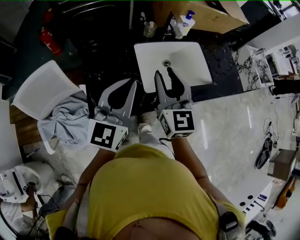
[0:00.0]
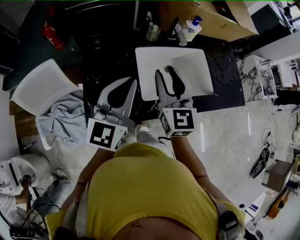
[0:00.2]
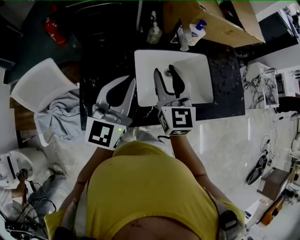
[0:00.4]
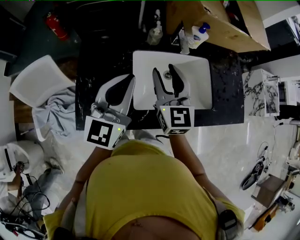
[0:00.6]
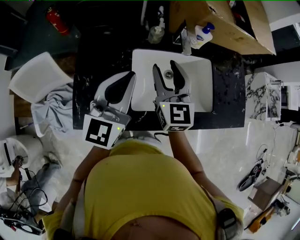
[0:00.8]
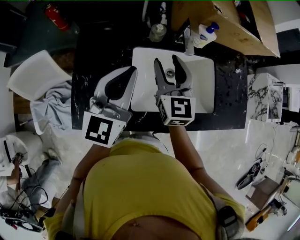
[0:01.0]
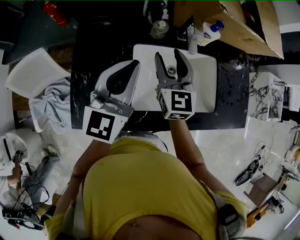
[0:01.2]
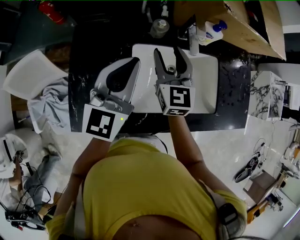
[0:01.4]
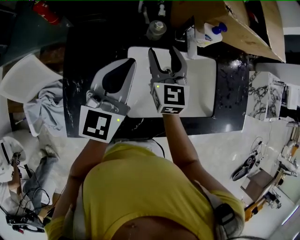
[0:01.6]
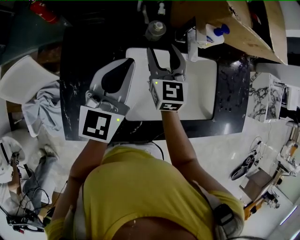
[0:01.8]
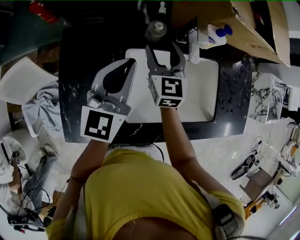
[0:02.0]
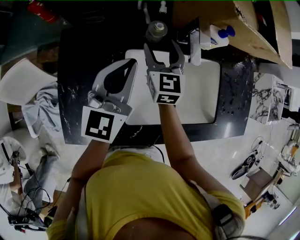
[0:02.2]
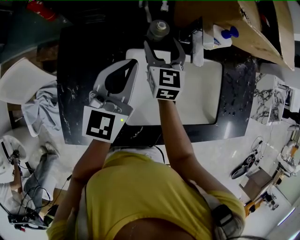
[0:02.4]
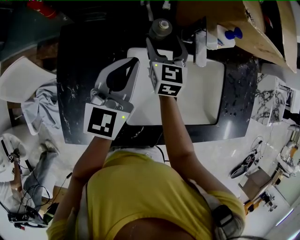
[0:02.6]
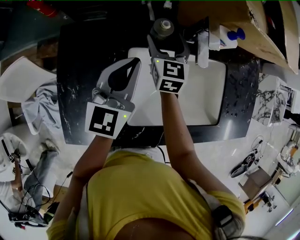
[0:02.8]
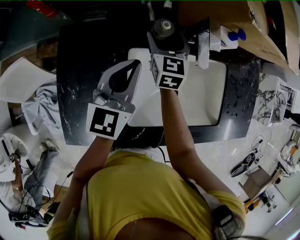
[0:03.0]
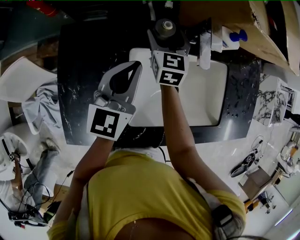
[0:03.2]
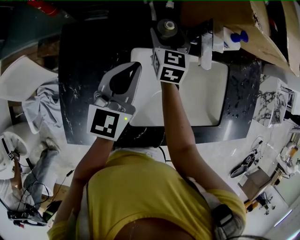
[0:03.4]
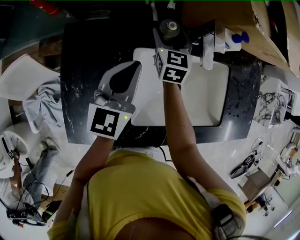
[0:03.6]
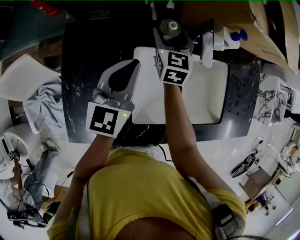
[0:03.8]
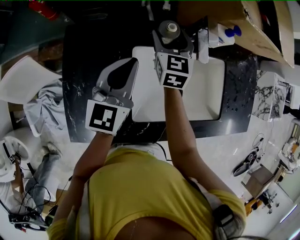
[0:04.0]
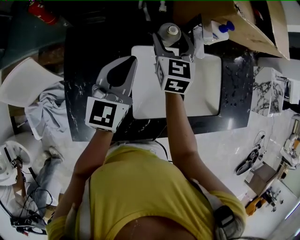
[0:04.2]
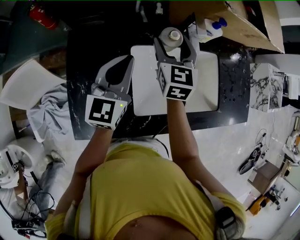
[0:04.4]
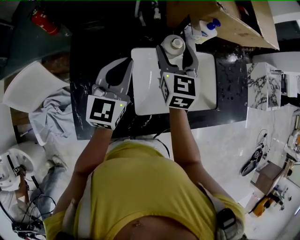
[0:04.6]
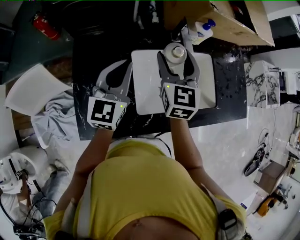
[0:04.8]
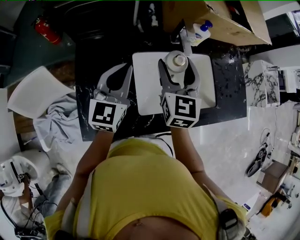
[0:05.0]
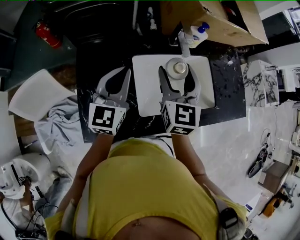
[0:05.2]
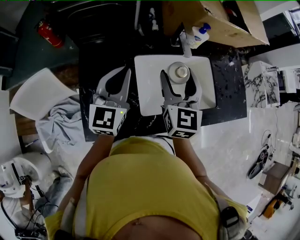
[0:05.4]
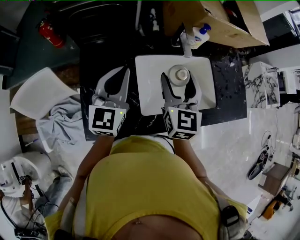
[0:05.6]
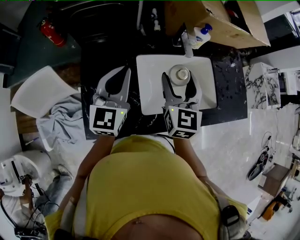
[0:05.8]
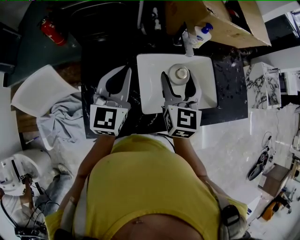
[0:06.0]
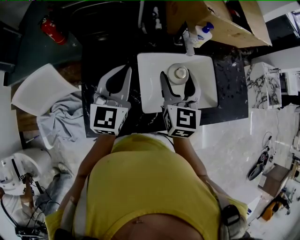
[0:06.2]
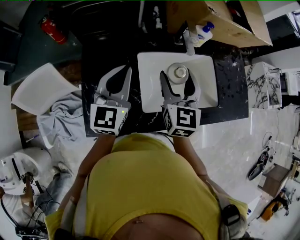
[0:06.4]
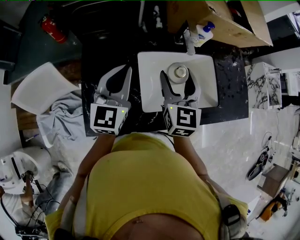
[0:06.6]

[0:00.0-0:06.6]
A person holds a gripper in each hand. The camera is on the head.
0:00.0 to 0:01.6: The left gripper heads forward, covering some 20 cm. The right gripper heads forward and downward, covering some 30 cm.
0:01.6 to 0:03.2: The left gripper goes approximately 10 cm downward; the right gripper is displaced forward and downward by about 15 cm, and opens.
0:03.2 to 0:05.0: The left gripper goes about 10 cm upward and backward, while the right gripper travels backward and upward by about 25 cm.
0:05.0 to 0:06.6: The grippers move only a little.

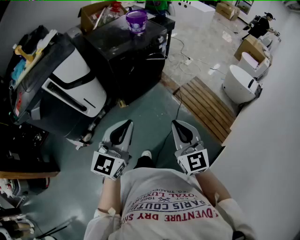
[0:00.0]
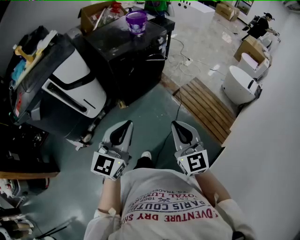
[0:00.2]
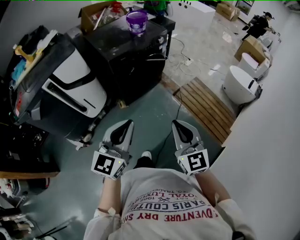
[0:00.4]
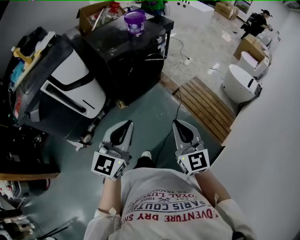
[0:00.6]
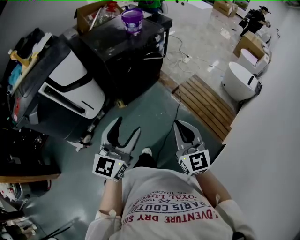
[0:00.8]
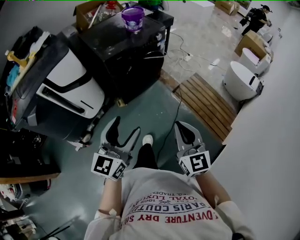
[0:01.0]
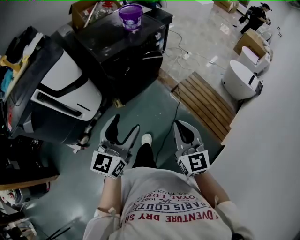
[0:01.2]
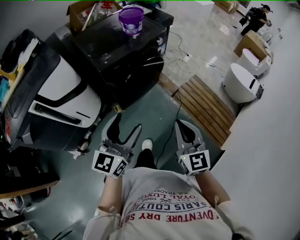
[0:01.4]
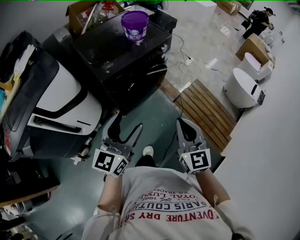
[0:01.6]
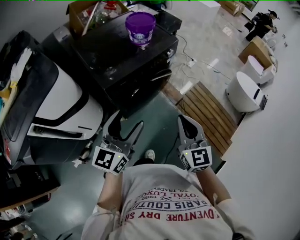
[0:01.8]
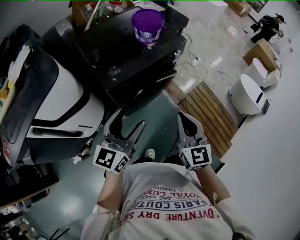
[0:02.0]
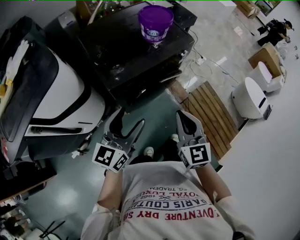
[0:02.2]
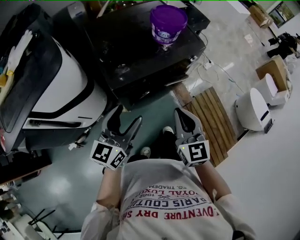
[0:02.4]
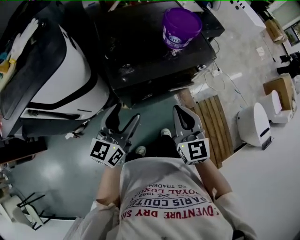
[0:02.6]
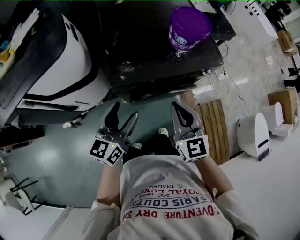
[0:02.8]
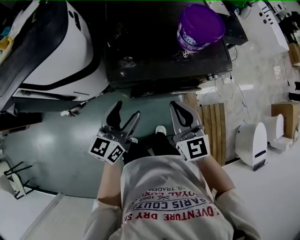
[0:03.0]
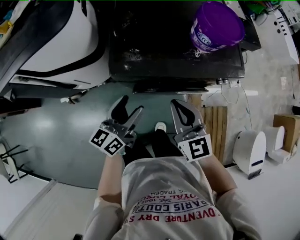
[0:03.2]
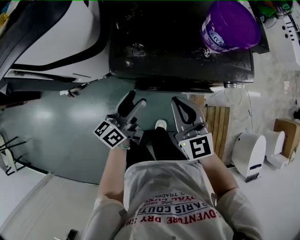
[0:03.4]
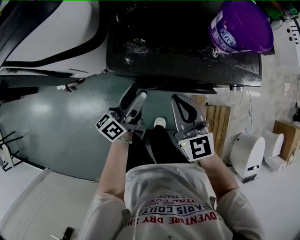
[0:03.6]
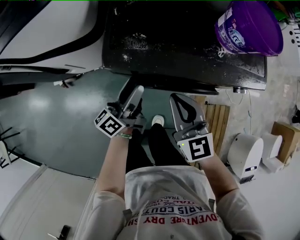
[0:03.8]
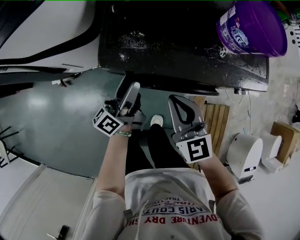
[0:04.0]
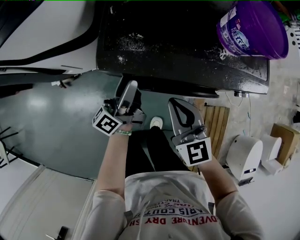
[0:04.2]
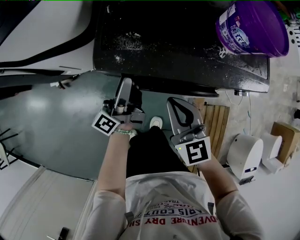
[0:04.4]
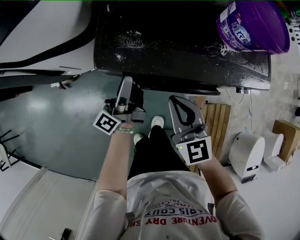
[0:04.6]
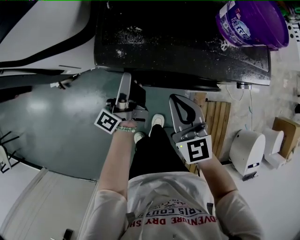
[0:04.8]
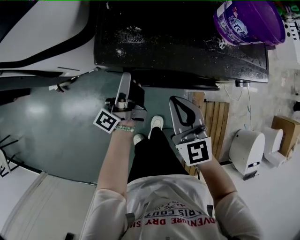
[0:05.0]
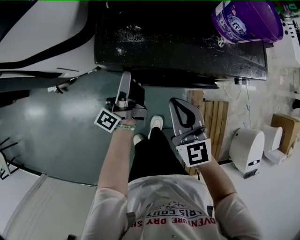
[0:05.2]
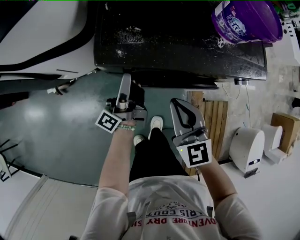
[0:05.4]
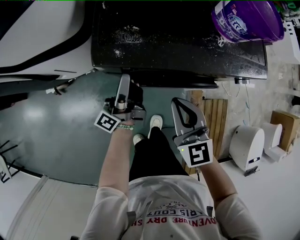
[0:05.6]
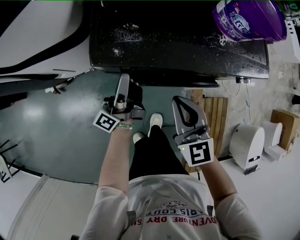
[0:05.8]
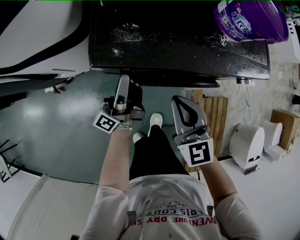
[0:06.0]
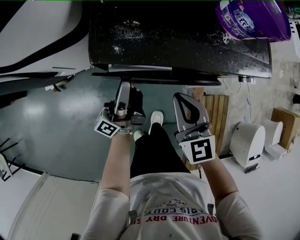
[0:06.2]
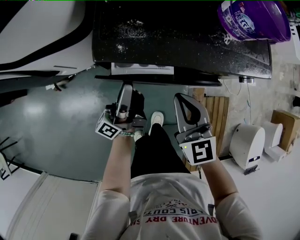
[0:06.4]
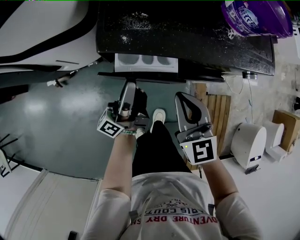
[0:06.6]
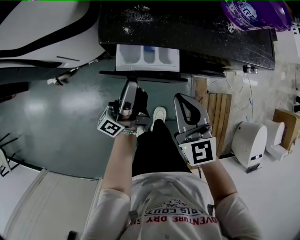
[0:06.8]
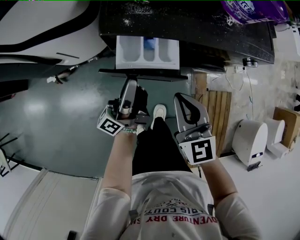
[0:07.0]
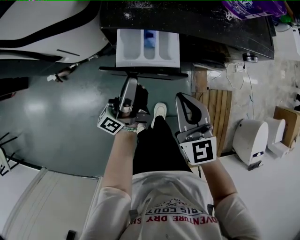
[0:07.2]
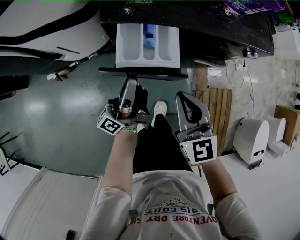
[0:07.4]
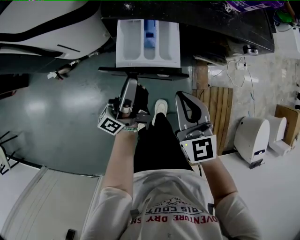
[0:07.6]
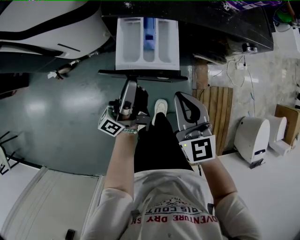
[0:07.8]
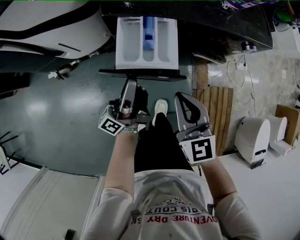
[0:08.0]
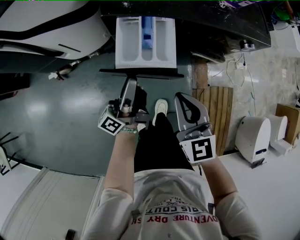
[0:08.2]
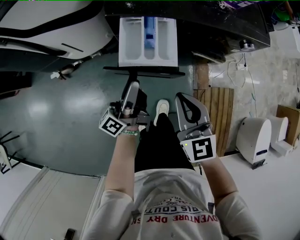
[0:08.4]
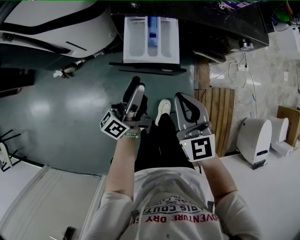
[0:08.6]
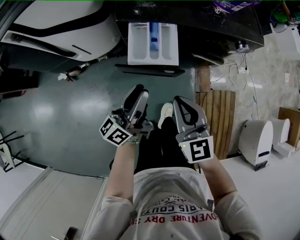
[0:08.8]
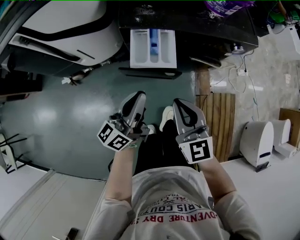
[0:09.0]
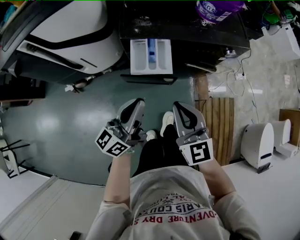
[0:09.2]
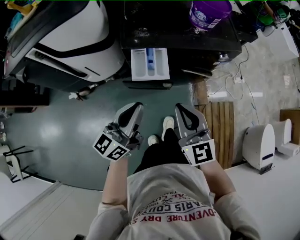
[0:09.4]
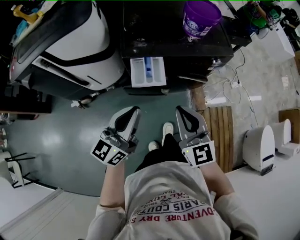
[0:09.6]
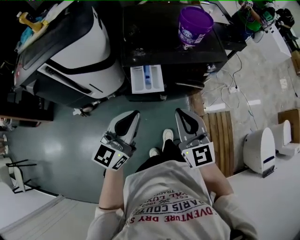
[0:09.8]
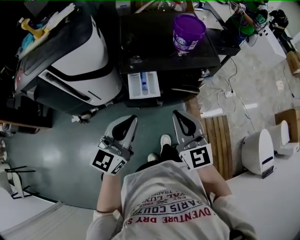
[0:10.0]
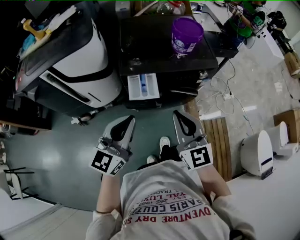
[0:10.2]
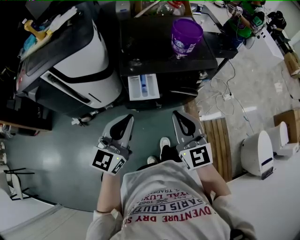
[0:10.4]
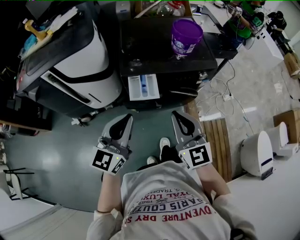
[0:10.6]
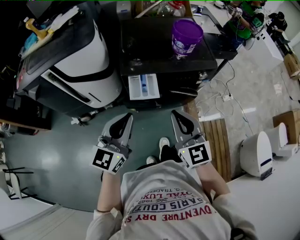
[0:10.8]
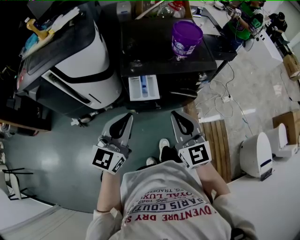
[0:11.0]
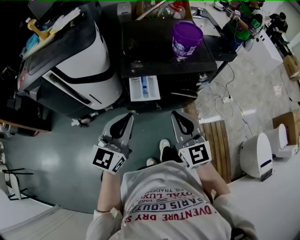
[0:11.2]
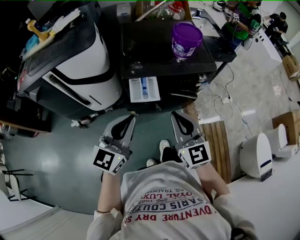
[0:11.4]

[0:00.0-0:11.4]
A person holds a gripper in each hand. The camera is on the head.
0:00.0 to 0:01.4: Both grippers travel together forward, approximately 15 cm. The left gripper opens up.
0:01.4 to 0:02.8: The right gripper shifts by about 40 cm, and changes its angle by approximately 30 degrees, while the left gripper moves some 30 cm, and rotates some 30 degrees.
0:02.8 to 0:04.2: Both grippers move downward and forward, approximately 20 cm. The right gripper rotates roughly 20 degrees; the left gripper swivels about 50 degrees.
0:04.2 to 0:05.6: The left gripper closes up.
0:05.6 to 0:07.2: Both grippers move backward, roughly 10 cm.
0:07.2 to 0:08.6: The two grippers go roughly 5 cm backward. The left gripper opens its fingers.
0:08.6 to 0:10.0: Both grippers move upward, some 25 cm. The left gripper rotates around the line of its fingers by about 60 degrees, clockwise from behind, and closes its fingers.
0:10.0 to 0:11.4: The grippers make only small movements.

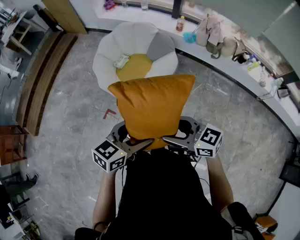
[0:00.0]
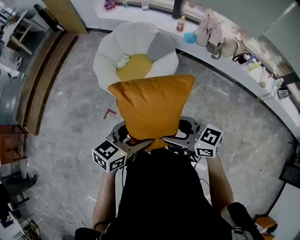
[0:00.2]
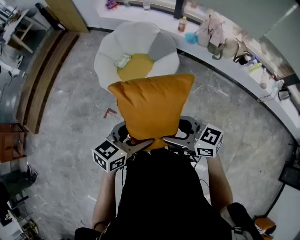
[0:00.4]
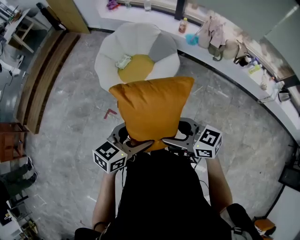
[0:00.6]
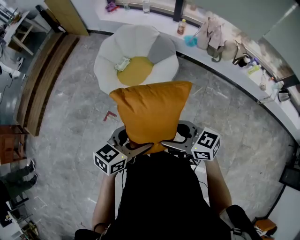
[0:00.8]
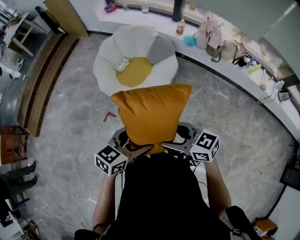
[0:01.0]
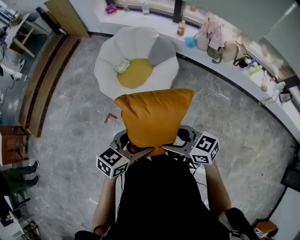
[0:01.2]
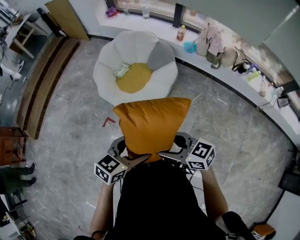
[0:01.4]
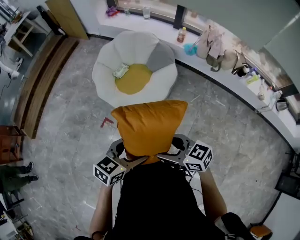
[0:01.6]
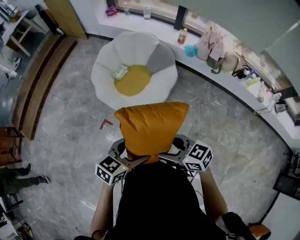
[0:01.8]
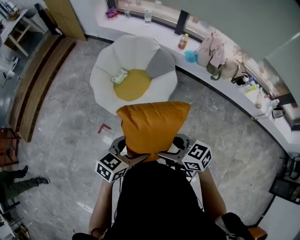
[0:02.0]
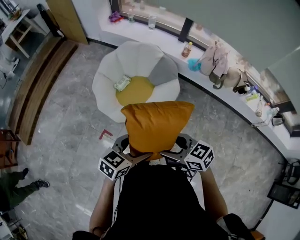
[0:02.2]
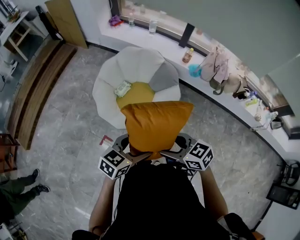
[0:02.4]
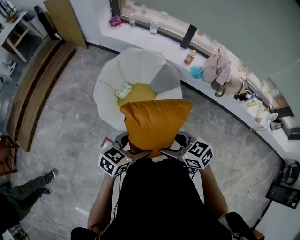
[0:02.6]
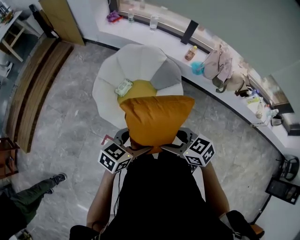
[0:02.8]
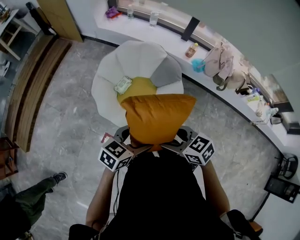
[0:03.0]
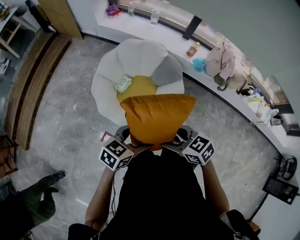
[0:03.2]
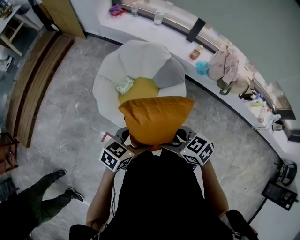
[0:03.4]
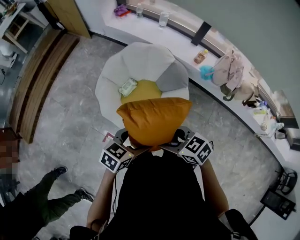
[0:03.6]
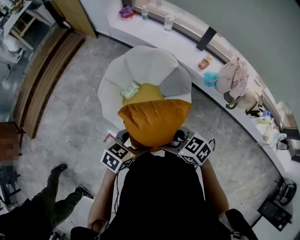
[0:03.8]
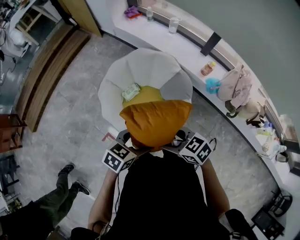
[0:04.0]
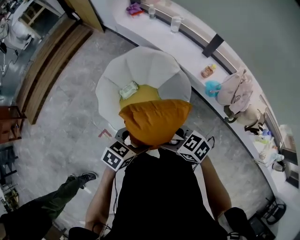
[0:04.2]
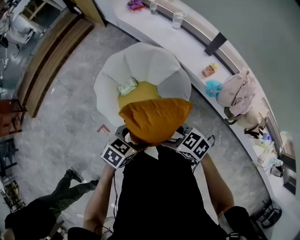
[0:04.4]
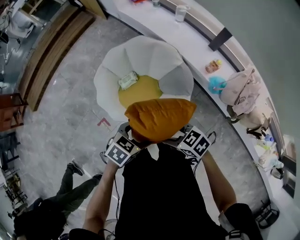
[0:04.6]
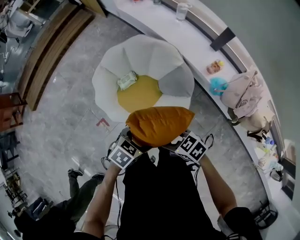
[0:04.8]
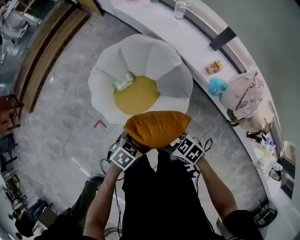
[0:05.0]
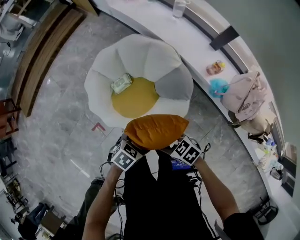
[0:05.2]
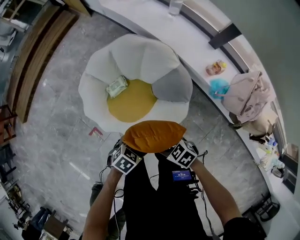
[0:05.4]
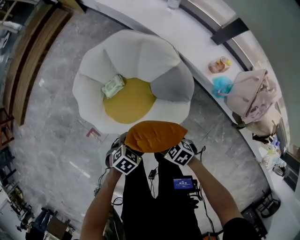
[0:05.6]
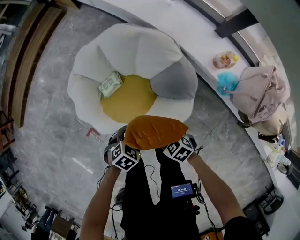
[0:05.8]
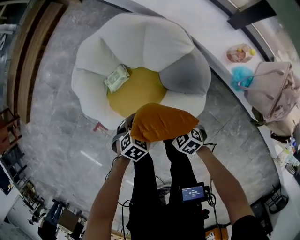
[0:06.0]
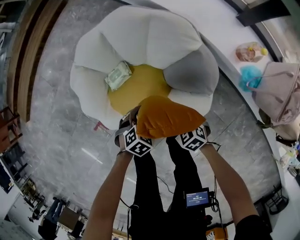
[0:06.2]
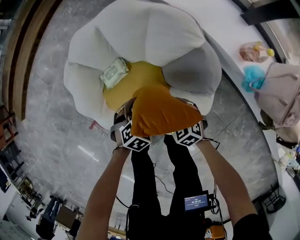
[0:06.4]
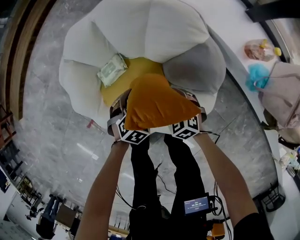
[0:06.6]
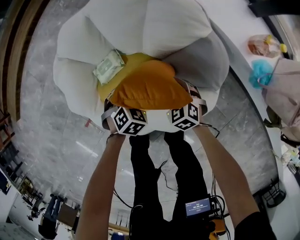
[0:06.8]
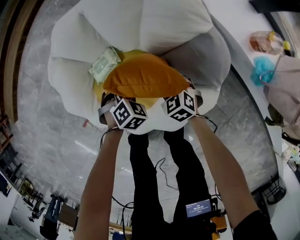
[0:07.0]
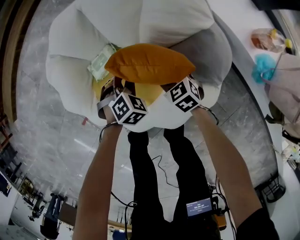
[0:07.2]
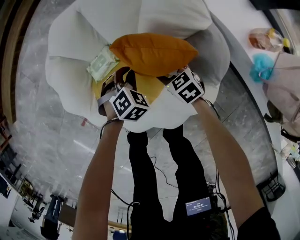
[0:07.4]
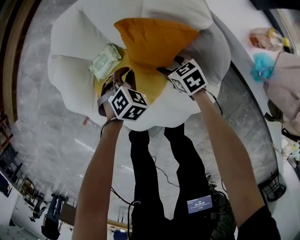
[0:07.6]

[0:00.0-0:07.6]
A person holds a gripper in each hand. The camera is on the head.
0:00.0 to 0:01.6: The grippers make only small movements.
0:01.6 to 0:03.0: The right gripper moves roughly 30 cm, while the left gripper moves about 30 cm.
0:03.0 to 0:04.6: The left gripper moves approximately 30 cm, and swivels about 30 degrees; the right gripper ends up some 30 cm from where it was, and swivels about 30 degrees.
0:04.6 to 0:06.0: The grippers both shift downward by about 35 cm.
0:06.0 to 0:07.6: The right gripper moves approximately 25 cm. The left gripper shifts by some 20 cm, turns by approximately 20 degrees, and closes.
